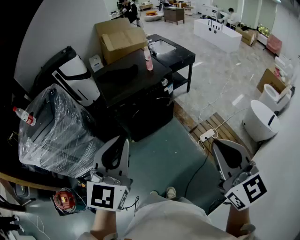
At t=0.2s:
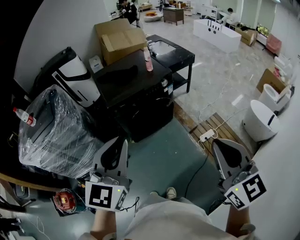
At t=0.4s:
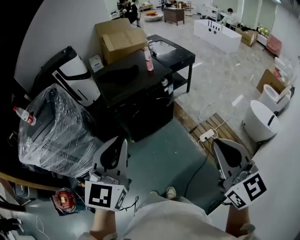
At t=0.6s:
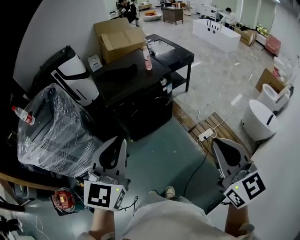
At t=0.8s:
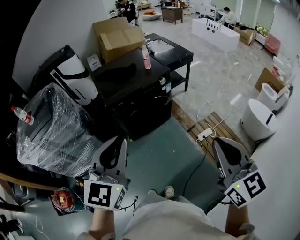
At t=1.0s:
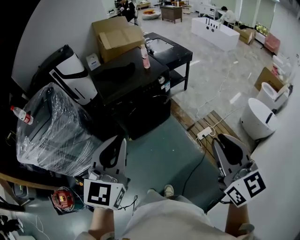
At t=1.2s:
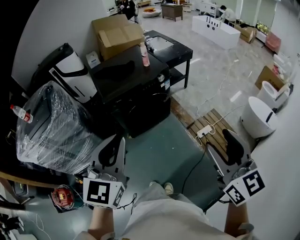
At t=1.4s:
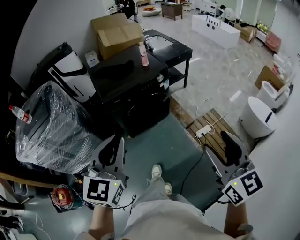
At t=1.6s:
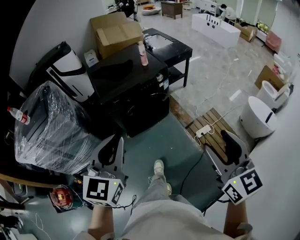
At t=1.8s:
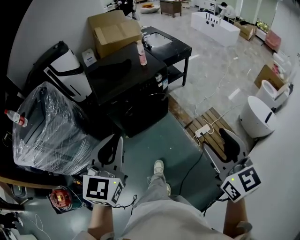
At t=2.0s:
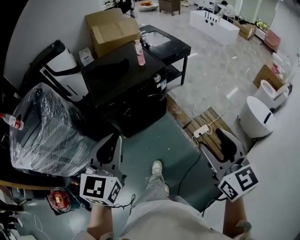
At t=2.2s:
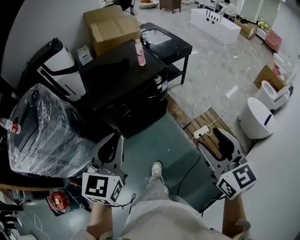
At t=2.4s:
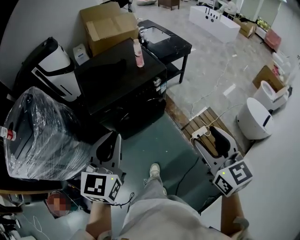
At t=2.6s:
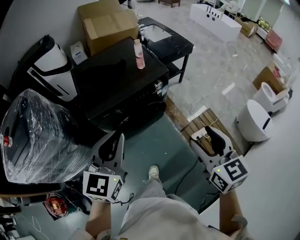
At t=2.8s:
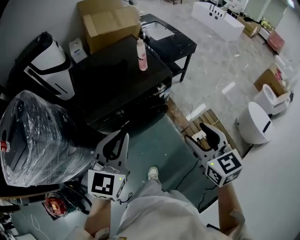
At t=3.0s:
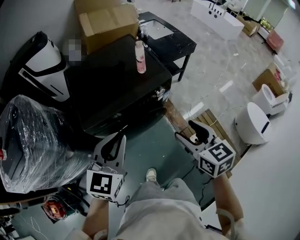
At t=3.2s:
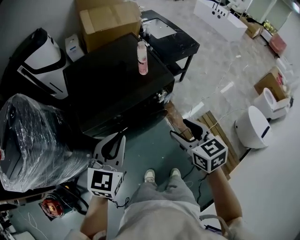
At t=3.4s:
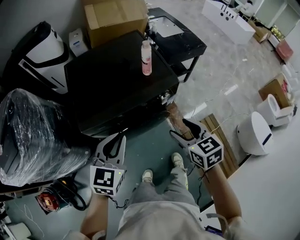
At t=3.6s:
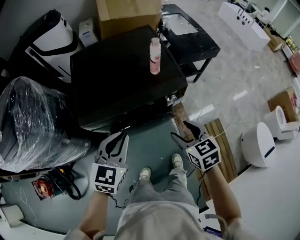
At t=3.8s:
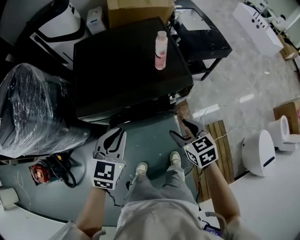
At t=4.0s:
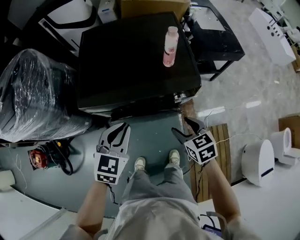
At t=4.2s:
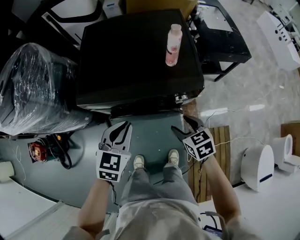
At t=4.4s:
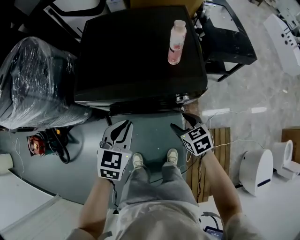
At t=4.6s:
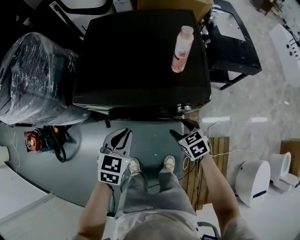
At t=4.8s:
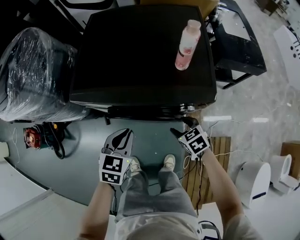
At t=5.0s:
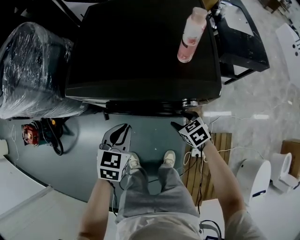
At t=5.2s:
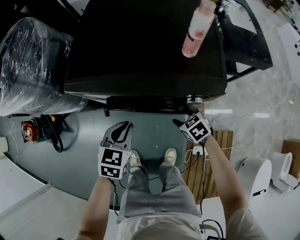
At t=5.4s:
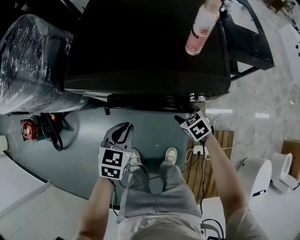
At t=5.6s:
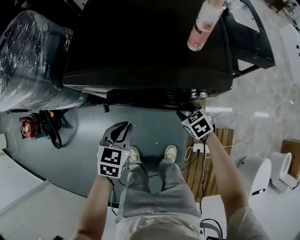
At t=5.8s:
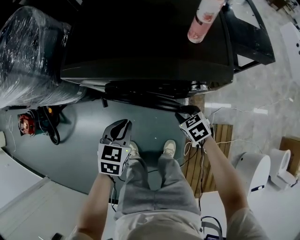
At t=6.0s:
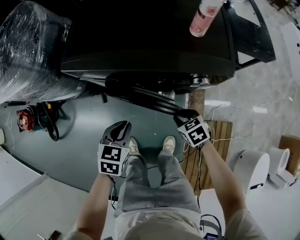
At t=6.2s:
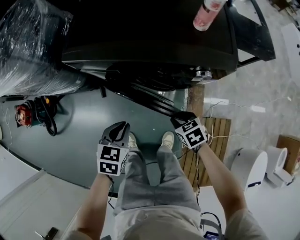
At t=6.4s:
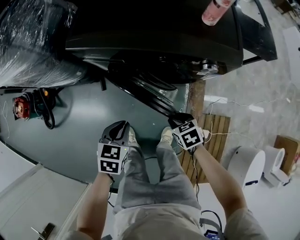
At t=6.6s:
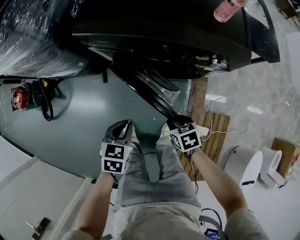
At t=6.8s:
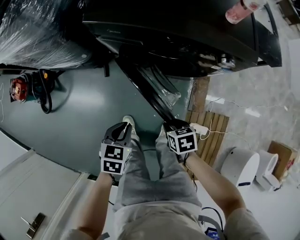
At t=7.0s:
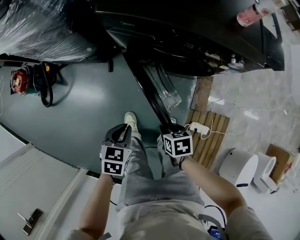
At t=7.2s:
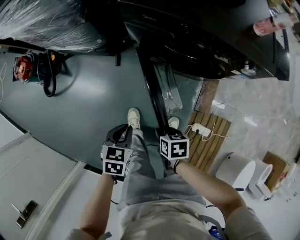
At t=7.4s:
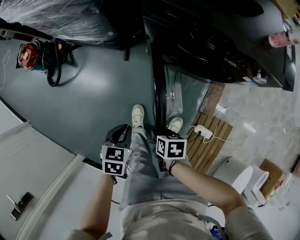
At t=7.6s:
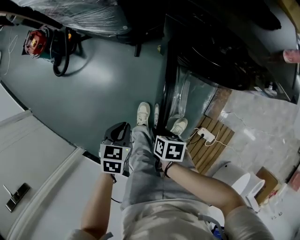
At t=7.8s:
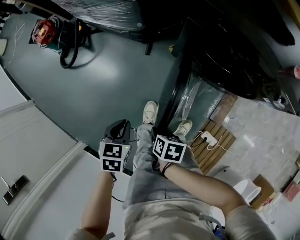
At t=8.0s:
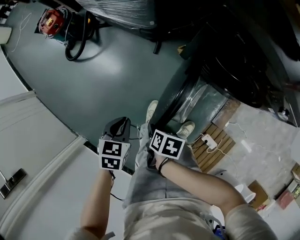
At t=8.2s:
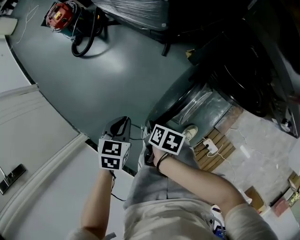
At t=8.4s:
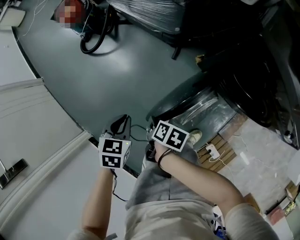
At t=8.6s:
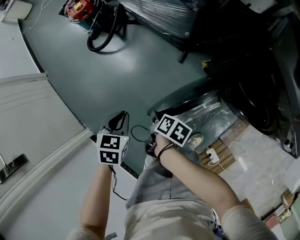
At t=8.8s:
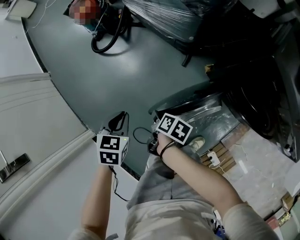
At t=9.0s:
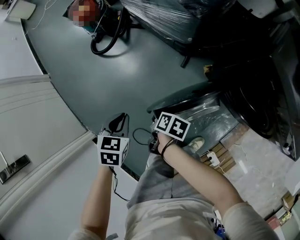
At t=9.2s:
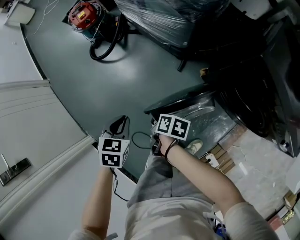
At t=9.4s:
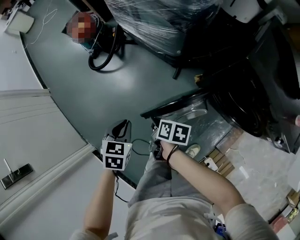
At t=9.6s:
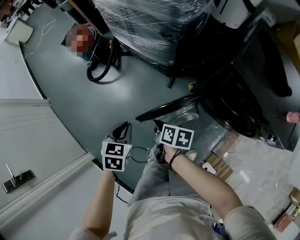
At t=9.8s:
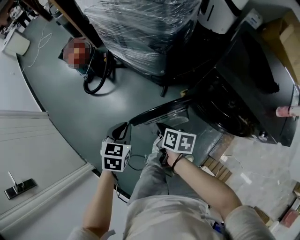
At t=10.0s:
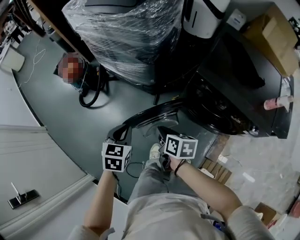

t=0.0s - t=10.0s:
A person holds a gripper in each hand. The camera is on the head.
t=0.0s - t=1.4s: The right gripper opens.
t=1.4s - t=2.8s: Both grippers move forward, about 30 cm.
t=2.8s - t=4.2s: Both grippers move downward, roughly 25 cm. The right gripper swivels about 40 degrees. The left gripper turns by roughly 30 degrees.
t=4.2s - t=5.8s: Both grippers move downward, roughly 20 cm. The right gripper rotates approximately 20 degrees, and closes up; the left gripper rotates roughly 20 degrees.
t=5.8s - t=7.2s: The two grippers go about 30 cm to the left and backward. The right gripper changes its angle by approximately 30 degrees. Meanwhile the left gripper turns by about 20 degrees.
t=7.2s - t=8.6s: The right gripper changes place by some 35 cm, and turns by about 20 degrees; the left gripper moves some 35 cm, and turns by about 30 degrees.
t=8.6s - t=10.0s: The two grippers go some 25 cm upward and to the right. The right gripper rotates roughly 30 degrees.

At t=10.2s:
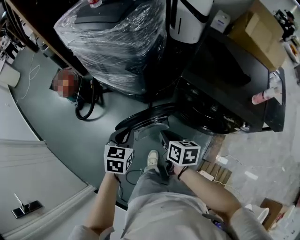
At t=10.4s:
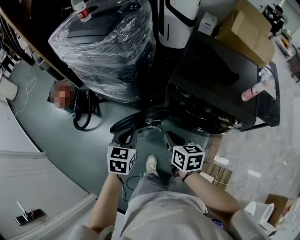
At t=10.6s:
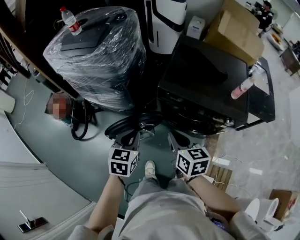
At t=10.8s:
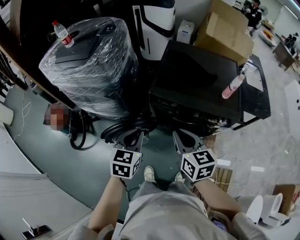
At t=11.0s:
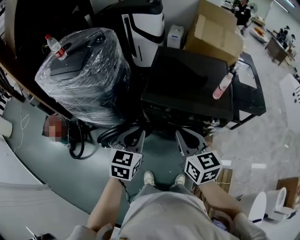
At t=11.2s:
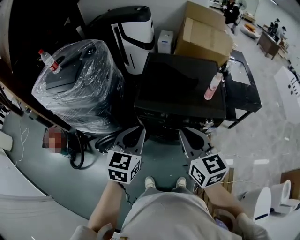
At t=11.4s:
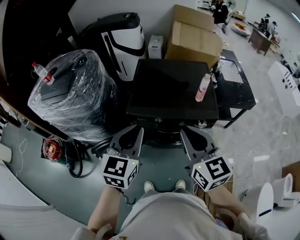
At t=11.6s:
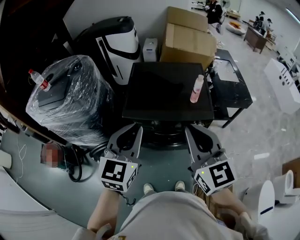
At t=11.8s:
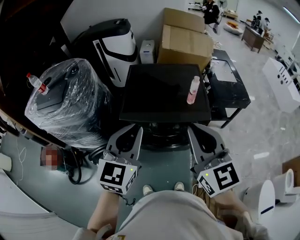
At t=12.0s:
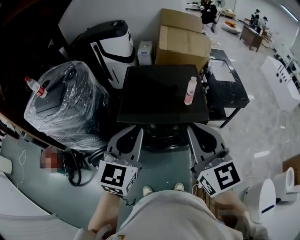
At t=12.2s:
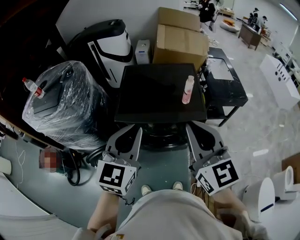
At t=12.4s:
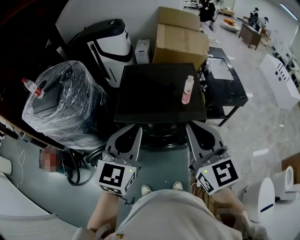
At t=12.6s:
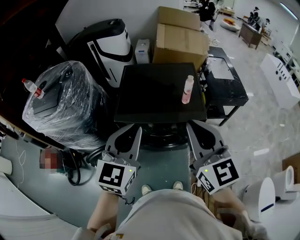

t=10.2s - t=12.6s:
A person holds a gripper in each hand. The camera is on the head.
t=10.2s - t=11.4s: The two grippers go approximately 30 cm upward. The left gripper rotates approximately 40 degrees, while the right gripper tilts its fingers some 30 degrees upward.
t=11.4s - t=12.6s: The two grippers go some 10 cm to the right and upward.

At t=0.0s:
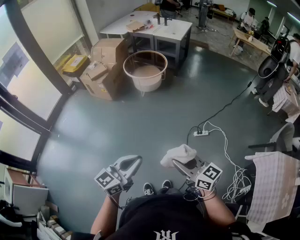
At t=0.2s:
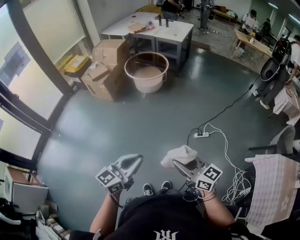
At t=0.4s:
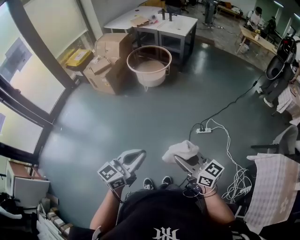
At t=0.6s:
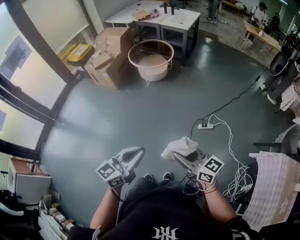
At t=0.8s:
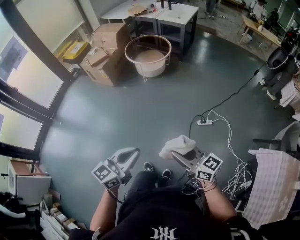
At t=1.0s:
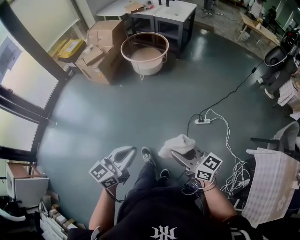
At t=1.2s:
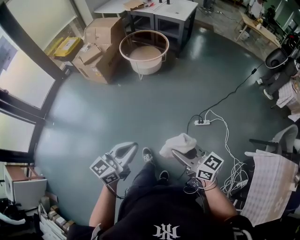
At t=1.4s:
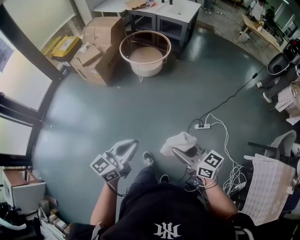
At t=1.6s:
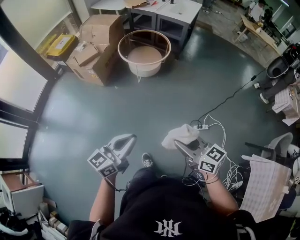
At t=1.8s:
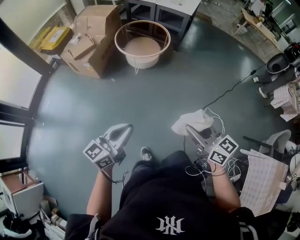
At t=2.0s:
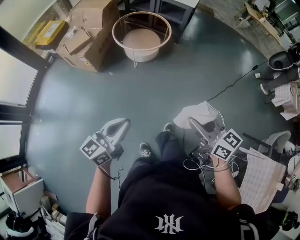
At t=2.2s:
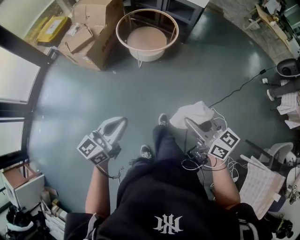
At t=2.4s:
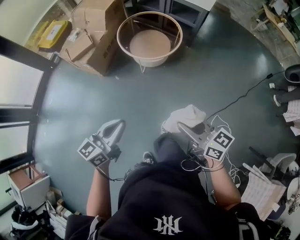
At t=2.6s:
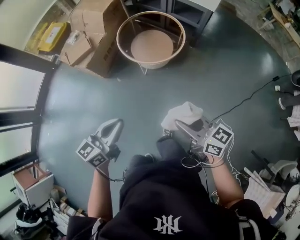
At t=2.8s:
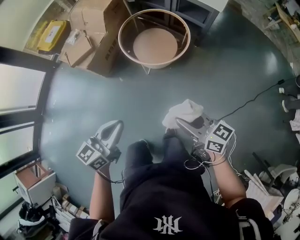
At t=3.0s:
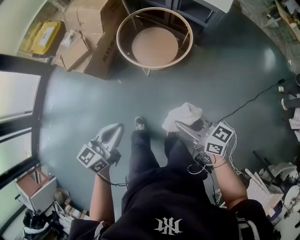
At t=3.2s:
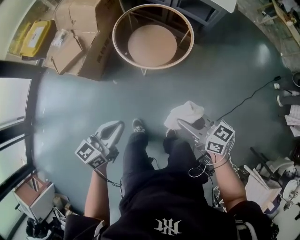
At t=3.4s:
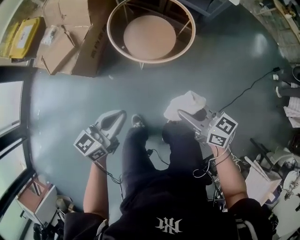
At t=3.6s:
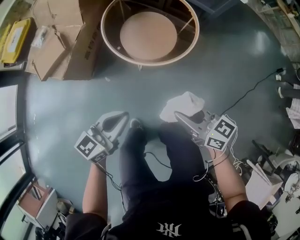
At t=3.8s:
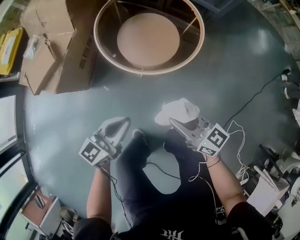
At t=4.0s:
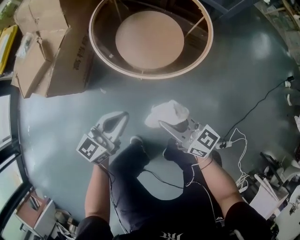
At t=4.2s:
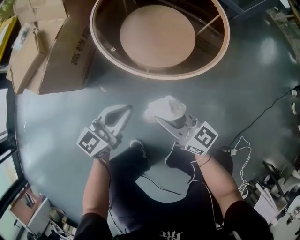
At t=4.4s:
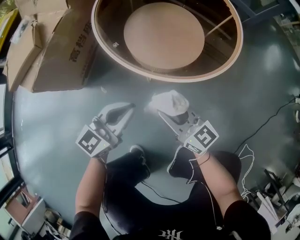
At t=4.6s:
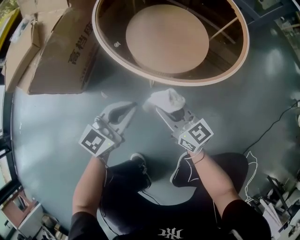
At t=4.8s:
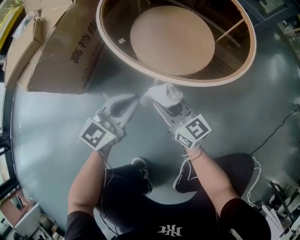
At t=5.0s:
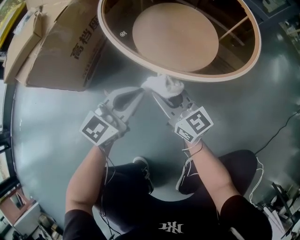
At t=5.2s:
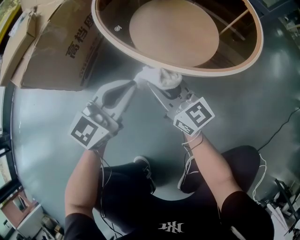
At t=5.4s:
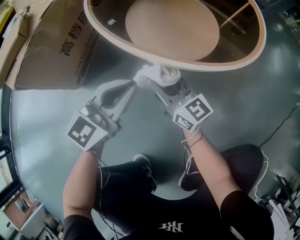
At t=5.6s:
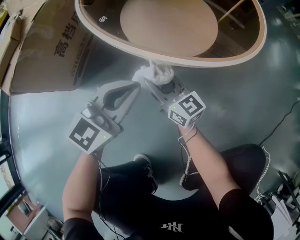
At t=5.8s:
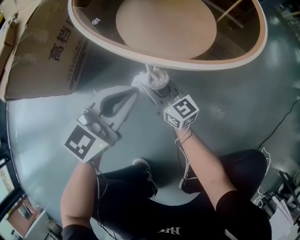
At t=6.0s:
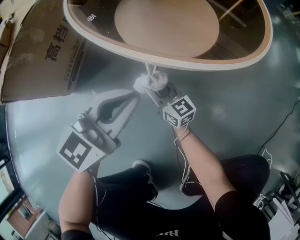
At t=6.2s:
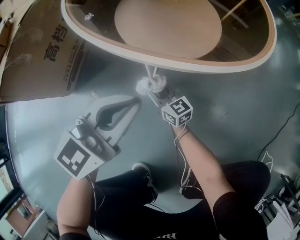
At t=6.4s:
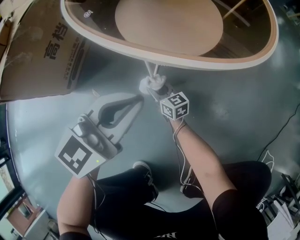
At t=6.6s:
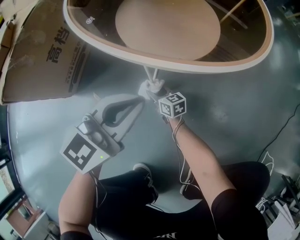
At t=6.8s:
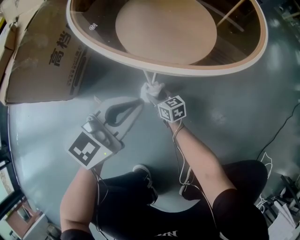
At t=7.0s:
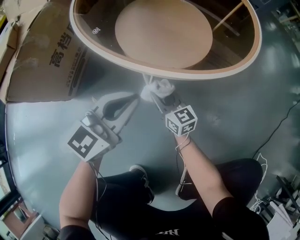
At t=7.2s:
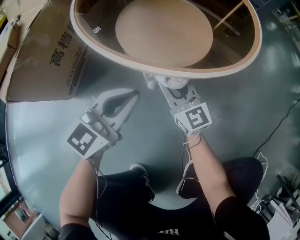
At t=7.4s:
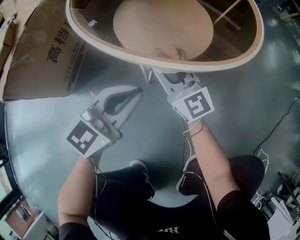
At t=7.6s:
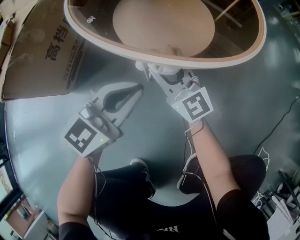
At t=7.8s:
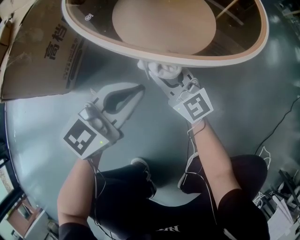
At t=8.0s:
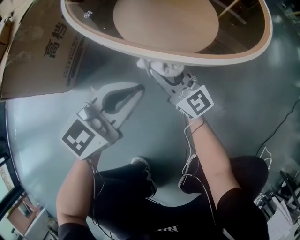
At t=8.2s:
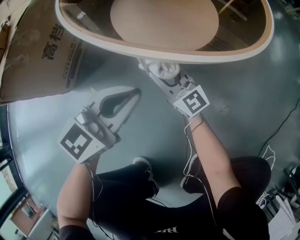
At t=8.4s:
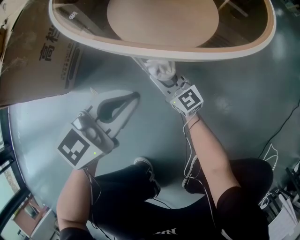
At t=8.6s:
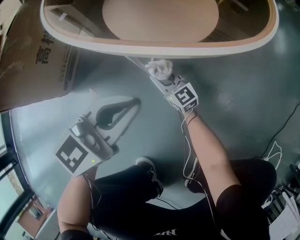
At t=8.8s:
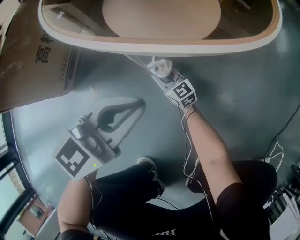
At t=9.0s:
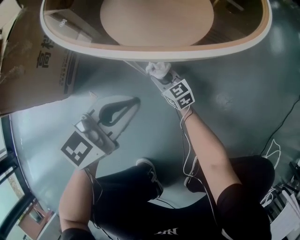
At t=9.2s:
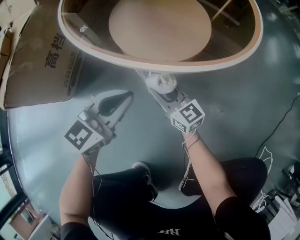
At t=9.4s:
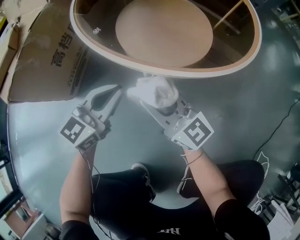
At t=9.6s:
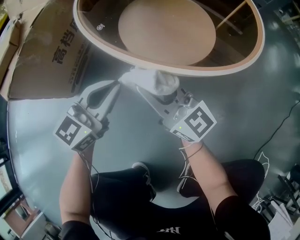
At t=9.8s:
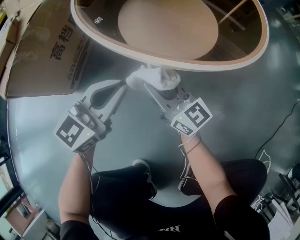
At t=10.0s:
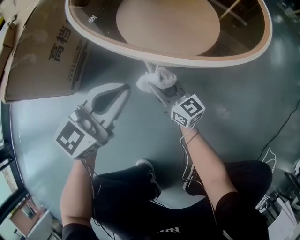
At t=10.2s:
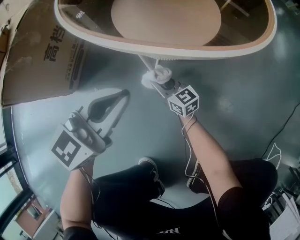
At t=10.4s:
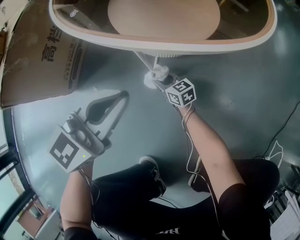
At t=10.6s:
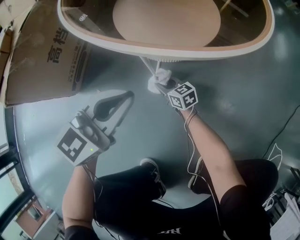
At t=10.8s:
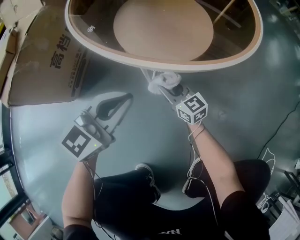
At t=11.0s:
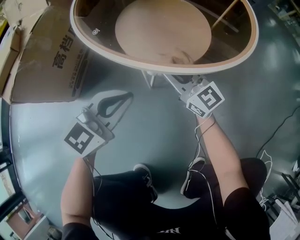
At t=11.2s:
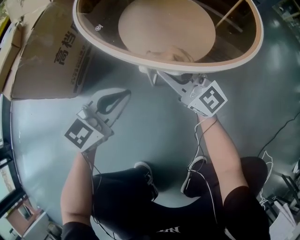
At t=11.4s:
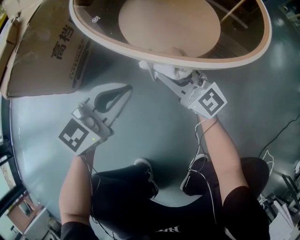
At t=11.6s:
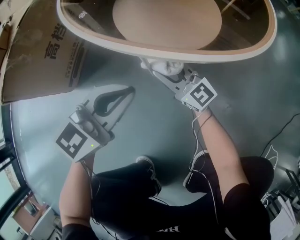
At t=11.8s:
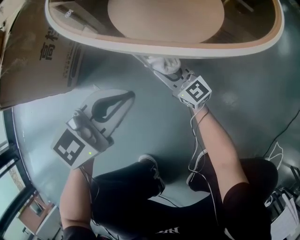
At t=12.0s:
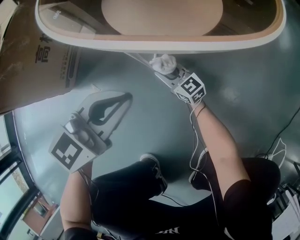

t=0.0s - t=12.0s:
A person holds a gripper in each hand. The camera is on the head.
t=0.0s - t=1.6s: Both grippers move forward, about 25 cm.
t=1.6s - t=3.0s: The two grippers travel together, forward, some 50 cm.
t=3.0s - t=4.4s: The grippers both shift downward and forward by approximately 50 cm.
t=4.4s - t=6.0s: The left gripper travels downward by approximately 10 cm. Meanwhile the right gripper moves downward, approximately 25 cm.
t=6.0s - t=7.6s: The right gripper heads upward, covering approximately 15 cm, and swivels about 30 degrees.
t=7.6s - t=9.0s: The left gripper shifts by about 5 cm. The right gripper is displaced downward by some 25 cm, and changes its angle by roughly 30 degrees.
t=9.0s - t=10.4s: The right gripper travels upward and back again, approximately 30 cm each way.
t=10.4s - t=12.0s: The right gripper travels upward and back again, some 30 cm each way.
